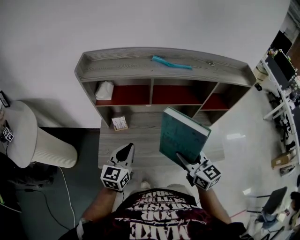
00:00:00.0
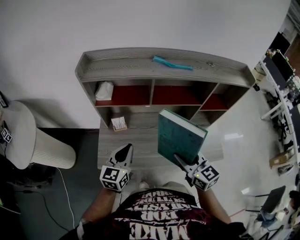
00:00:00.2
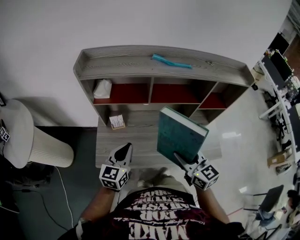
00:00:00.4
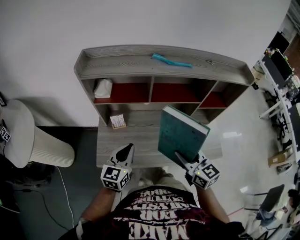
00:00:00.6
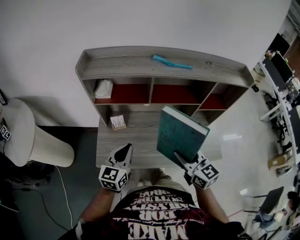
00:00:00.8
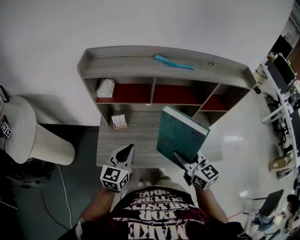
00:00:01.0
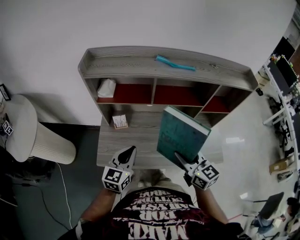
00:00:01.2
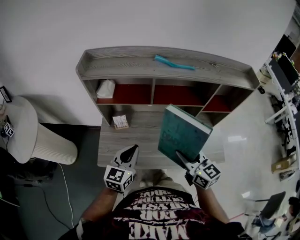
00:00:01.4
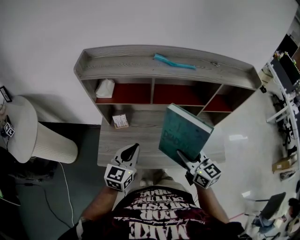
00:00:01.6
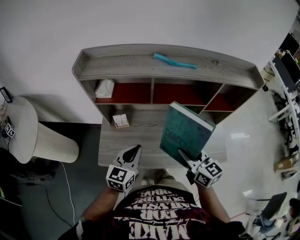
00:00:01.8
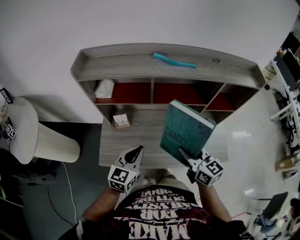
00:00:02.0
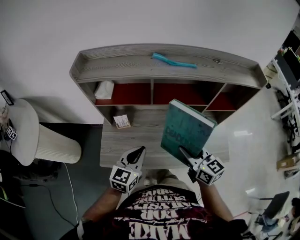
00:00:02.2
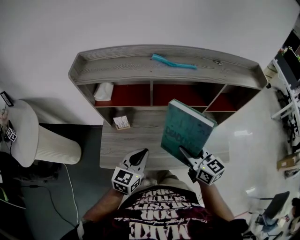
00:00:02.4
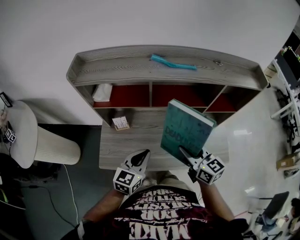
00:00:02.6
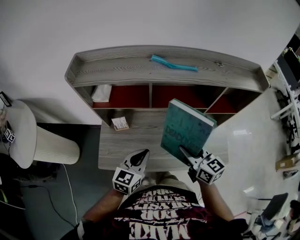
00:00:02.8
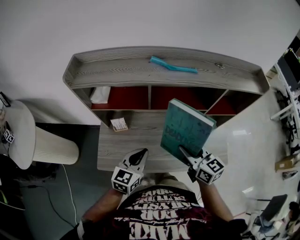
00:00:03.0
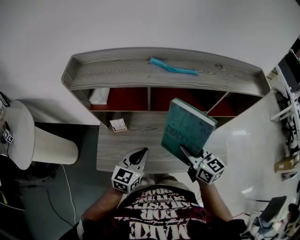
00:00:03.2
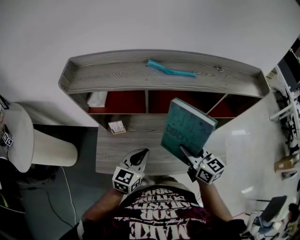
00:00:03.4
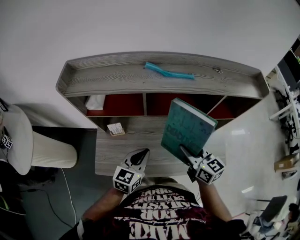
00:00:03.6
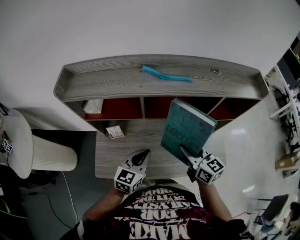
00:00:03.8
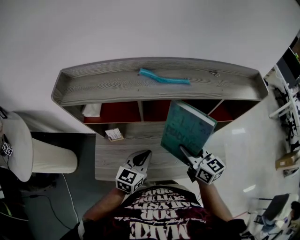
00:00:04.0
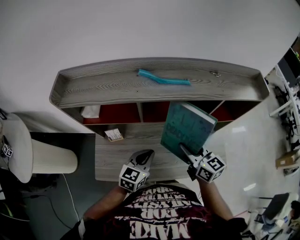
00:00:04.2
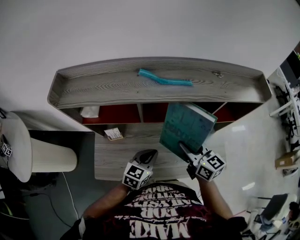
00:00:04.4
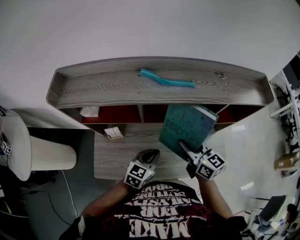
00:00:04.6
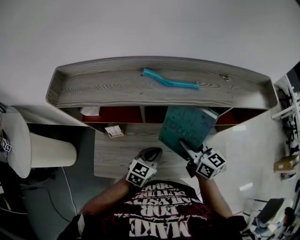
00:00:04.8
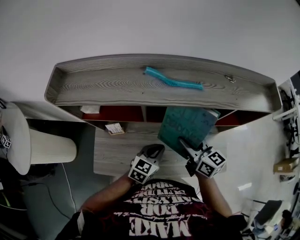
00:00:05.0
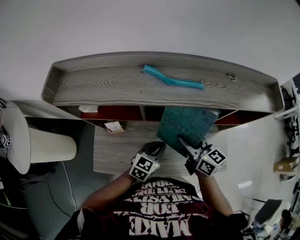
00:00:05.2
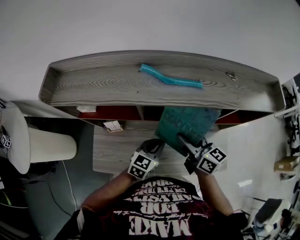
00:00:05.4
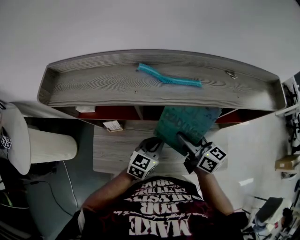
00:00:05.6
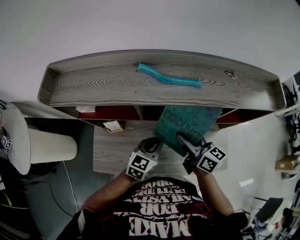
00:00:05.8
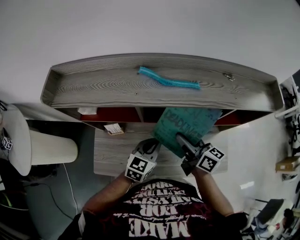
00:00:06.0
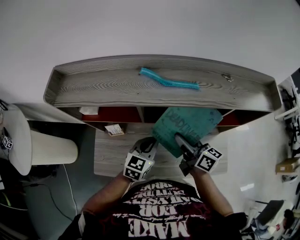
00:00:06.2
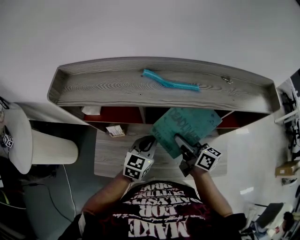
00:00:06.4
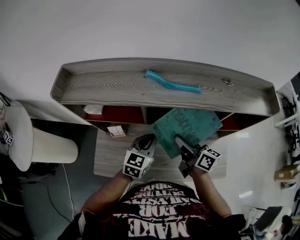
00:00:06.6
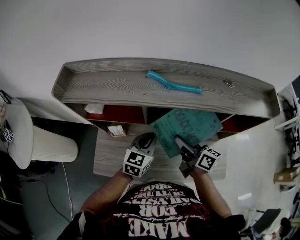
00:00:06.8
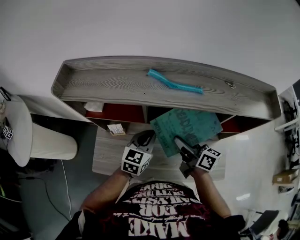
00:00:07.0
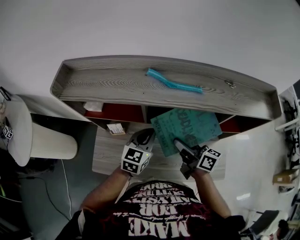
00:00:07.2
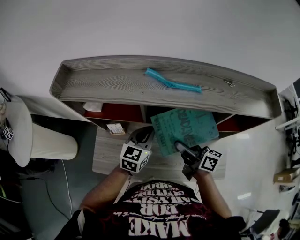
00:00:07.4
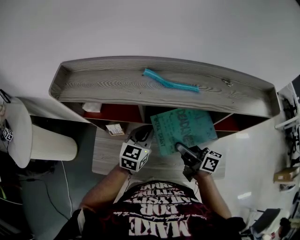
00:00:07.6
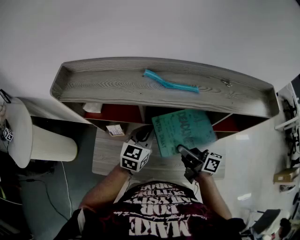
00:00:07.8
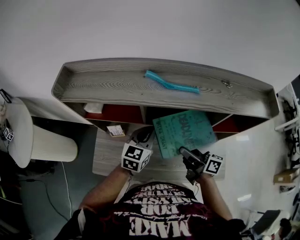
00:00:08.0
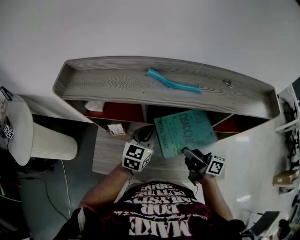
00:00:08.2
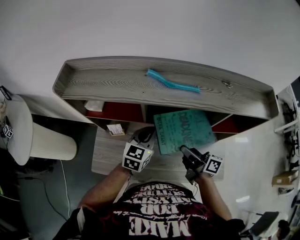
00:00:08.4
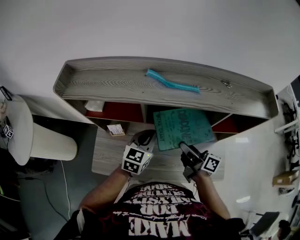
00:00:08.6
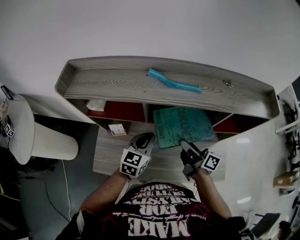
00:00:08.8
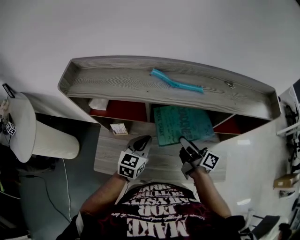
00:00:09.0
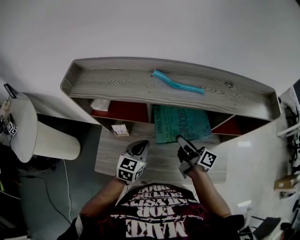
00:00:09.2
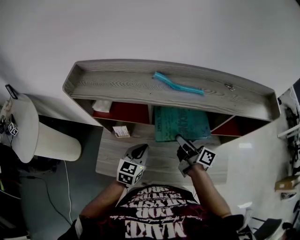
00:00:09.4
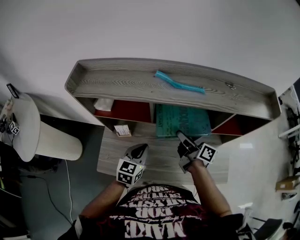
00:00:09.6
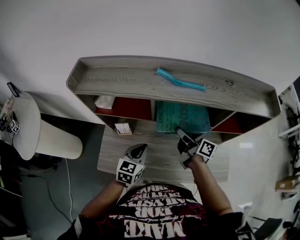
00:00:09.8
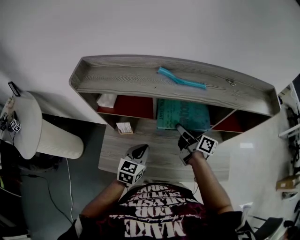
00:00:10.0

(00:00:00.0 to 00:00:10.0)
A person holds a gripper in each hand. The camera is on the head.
00:00:00.0 - 00:00:01.4: The grippers make only small movements.
00:00:01.4 - 00:00:02.8: The right gripper moves forward, some 5 cm; the left gripper shifts about 5 cm to the right.
00:00:02.8 - 00:00:04.2: The left gripper moves forward and to the right, some 10 cm. Meanwhile the right gripper travels forward by approximately 10 cm.
00:00:04.2 - 00:00:05.8: Both grippers travel together forward, about 5 cm.
00:00:05.8 - 00:00:07.2: The left gripper moves roughly 10 cm.
00:00:07.2 - 00:00:08.6: There are only small adjustments of the grippers.
00:00:08.6 - 00:00:10.0: The left gripper heads backward and to the left, covering approximately 10 cm, while the right gripper heads forward, covering about 5 cm.

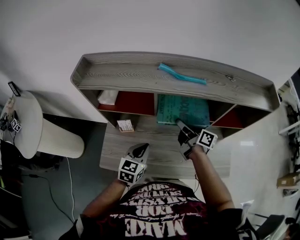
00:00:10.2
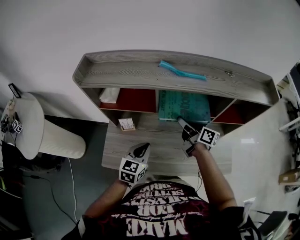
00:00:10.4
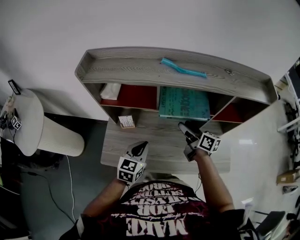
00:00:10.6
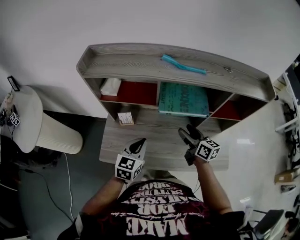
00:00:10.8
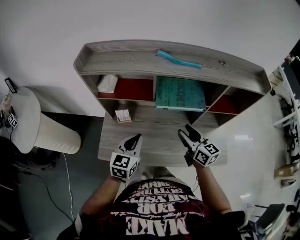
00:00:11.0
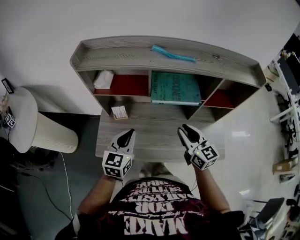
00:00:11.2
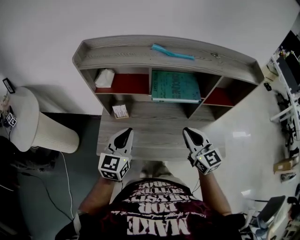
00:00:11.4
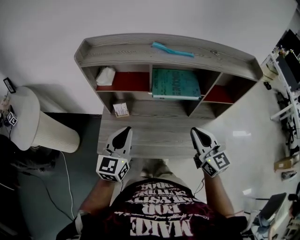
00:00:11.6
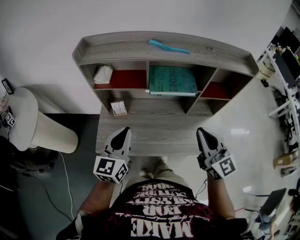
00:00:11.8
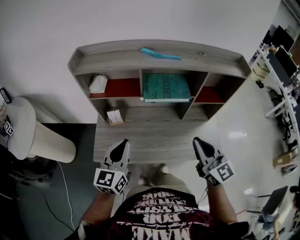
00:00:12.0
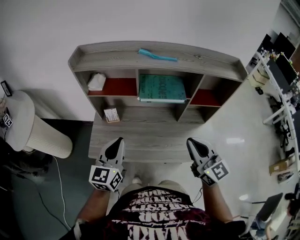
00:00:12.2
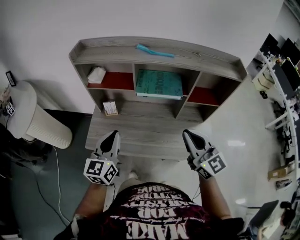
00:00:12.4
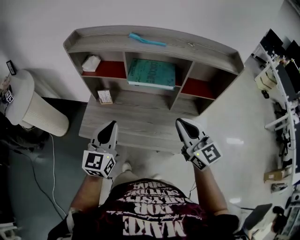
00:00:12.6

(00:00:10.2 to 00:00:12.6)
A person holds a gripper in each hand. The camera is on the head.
00:00:10.2 - 00:00:11.4: The right gripper moves backward and upward, roughly 20 cm, twists roughly 60 degrees counterclockwise, seen from behind, and closes; the left gripper goes roughly 15 cm upward, backward and to the left.
00:00:11.4 - 00:00:12.6: The right gripper moves to the right, upward and backward, roughly 15 cm. The left gripper shifts approximately 10 cm backward and to the right.

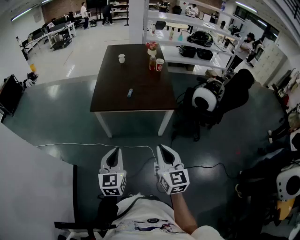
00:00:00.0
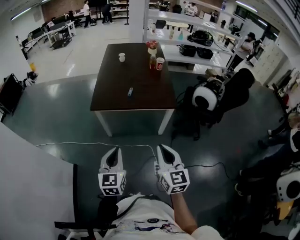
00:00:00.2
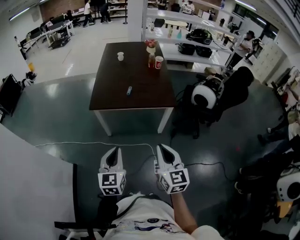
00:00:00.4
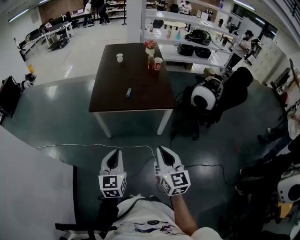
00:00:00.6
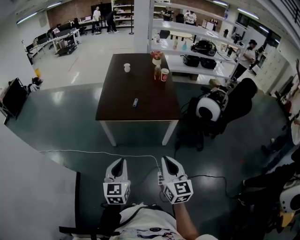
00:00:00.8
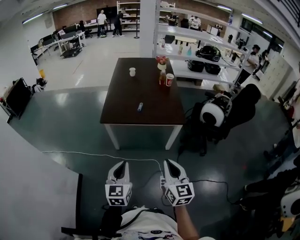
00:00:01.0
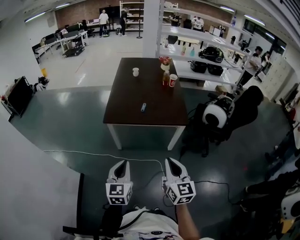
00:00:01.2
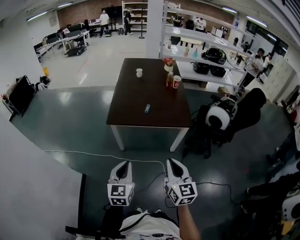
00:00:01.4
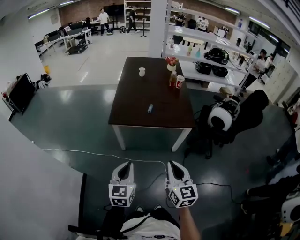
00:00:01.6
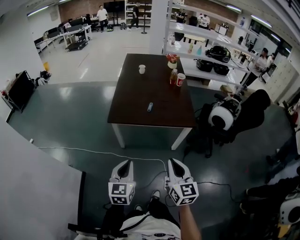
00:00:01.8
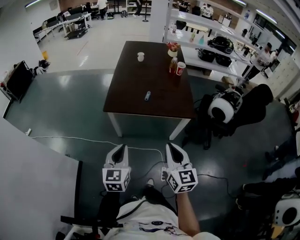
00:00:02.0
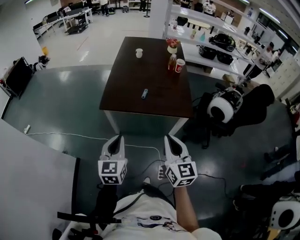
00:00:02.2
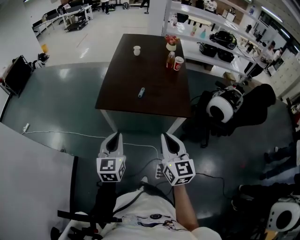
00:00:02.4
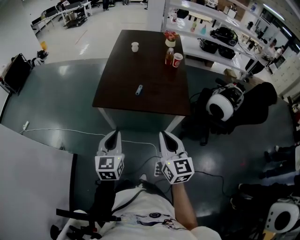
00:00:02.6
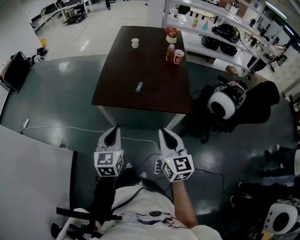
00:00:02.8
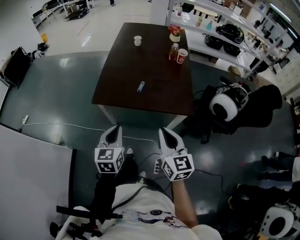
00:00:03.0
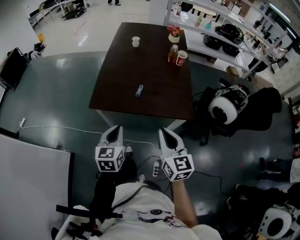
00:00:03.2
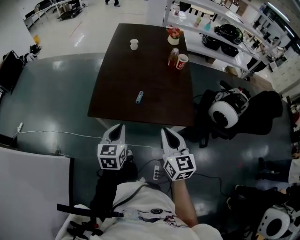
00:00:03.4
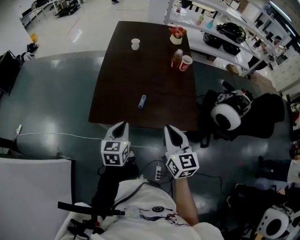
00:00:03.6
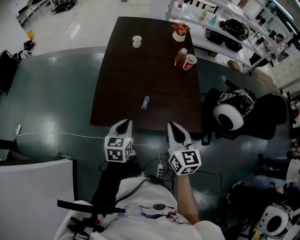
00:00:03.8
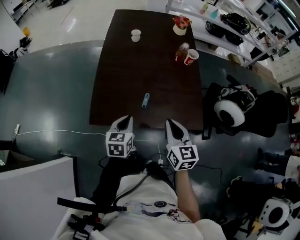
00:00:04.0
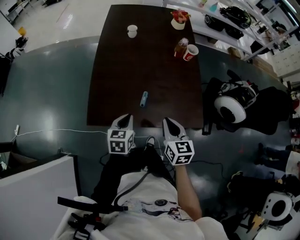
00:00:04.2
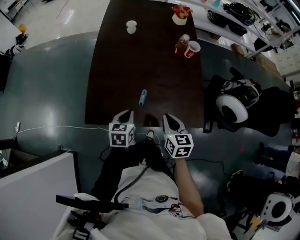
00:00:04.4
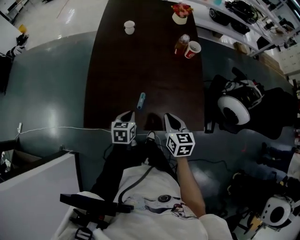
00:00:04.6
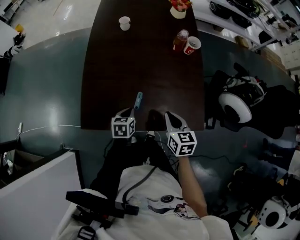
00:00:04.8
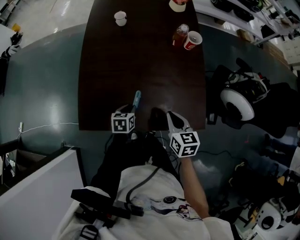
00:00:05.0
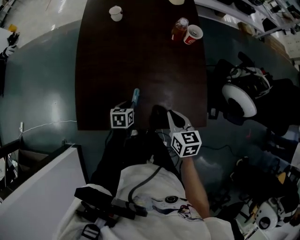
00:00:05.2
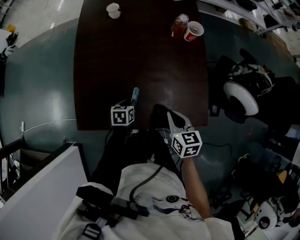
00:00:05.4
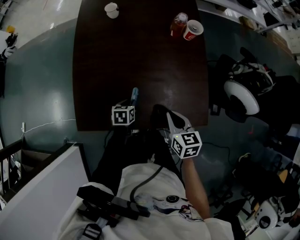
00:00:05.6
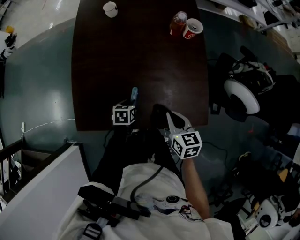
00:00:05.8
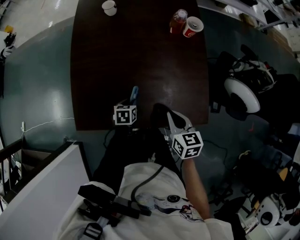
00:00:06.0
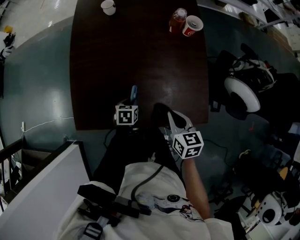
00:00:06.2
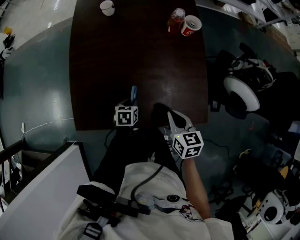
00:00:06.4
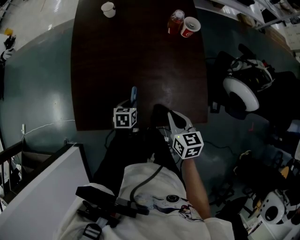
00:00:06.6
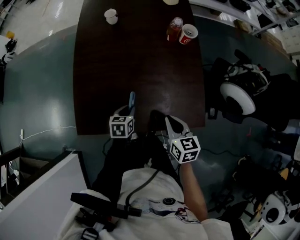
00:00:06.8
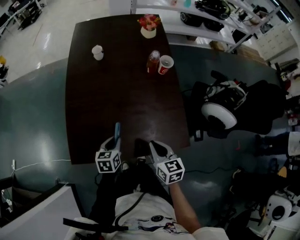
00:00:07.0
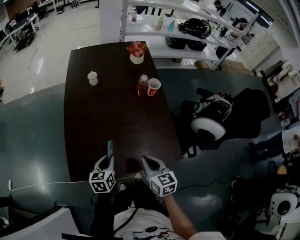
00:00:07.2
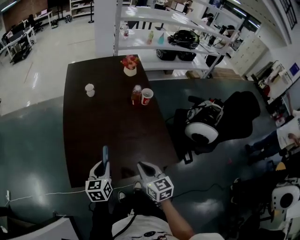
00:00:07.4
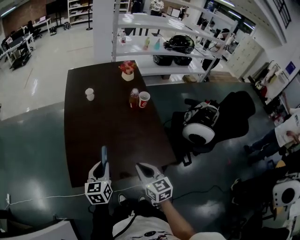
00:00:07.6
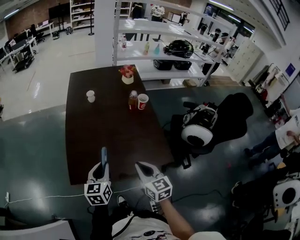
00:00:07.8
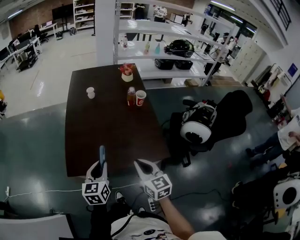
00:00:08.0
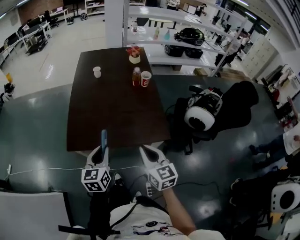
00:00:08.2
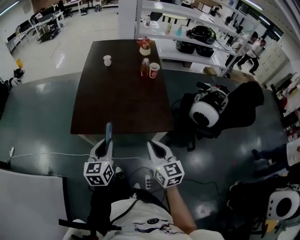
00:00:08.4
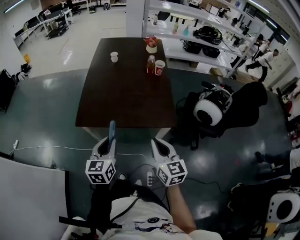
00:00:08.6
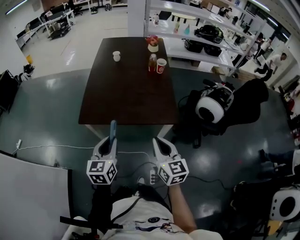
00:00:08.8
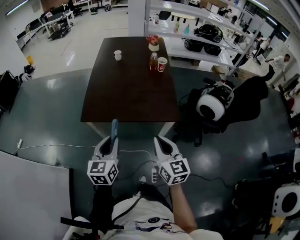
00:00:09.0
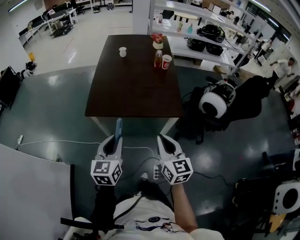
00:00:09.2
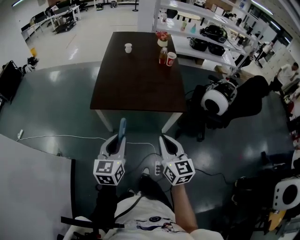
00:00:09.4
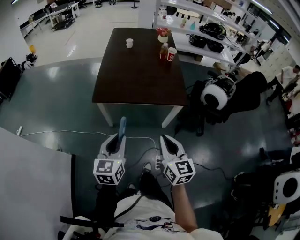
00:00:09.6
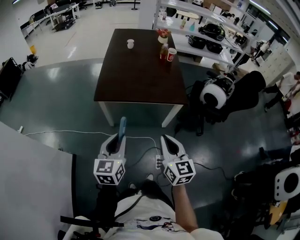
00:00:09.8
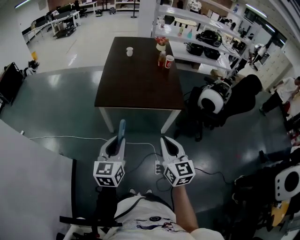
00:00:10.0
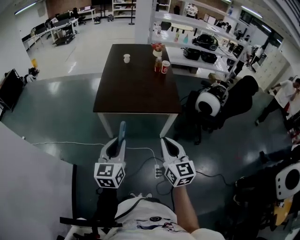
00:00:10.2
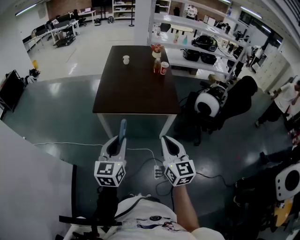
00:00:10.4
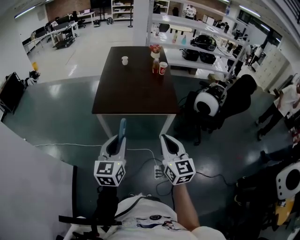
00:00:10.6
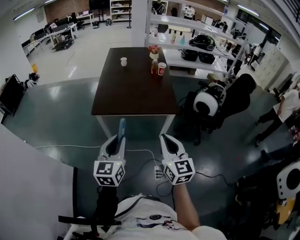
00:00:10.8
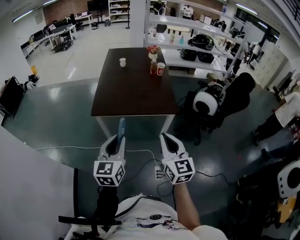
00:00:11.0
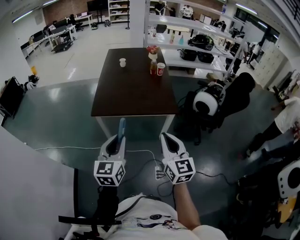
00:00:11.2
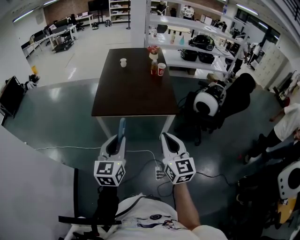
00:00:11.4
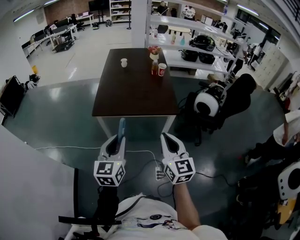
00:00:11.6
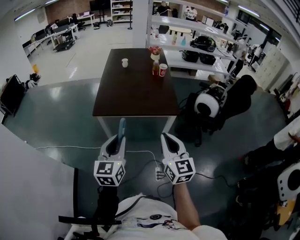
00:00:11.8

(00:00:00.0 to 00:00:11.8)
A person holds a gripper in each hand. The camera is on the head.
00:00:00.0 - 00:00:01.4: The right gripper ends up some 5 cm from where it was; the left gripper moves about 5 cm.
00:00:01.4 - 00:00:03.0: The two grippers go approximately 15 cm forward.
00:00:03.0 - 00:00:04.4: The two grippers go some 30 cm forward and downward. The right gripper swivels some 20 degrees. The left gripper rotates approximately 20 degrees.
00:00:04.4 - 00:00:06.0: The right gripper moves about 10 cm, while the left gripper moves downward, roughly 15 cm, changes its angle by some 20 degrees, and opens.
00:00:06.0 - 00:00:07.4: The left gripper travels upward by roughly 25 cm, and tips its fingers upward by some 30 degrees, while the right gripper shifts some 10 cm upward and to the left.
00:00:07.4 - 00:00:08.8: Both grippers move backward, some 25 cm.
00:00:08.8 - 00:00:10.4: The two grippers go some 15 cm backward.
00:00:10.4 - 00:00:11.8: The grippers make only small movements.
